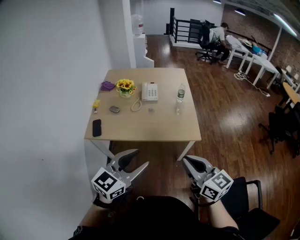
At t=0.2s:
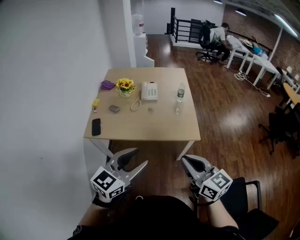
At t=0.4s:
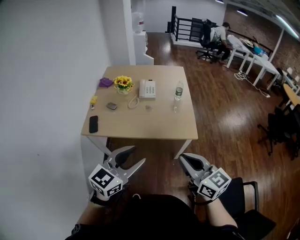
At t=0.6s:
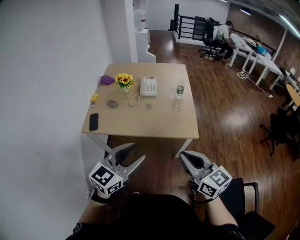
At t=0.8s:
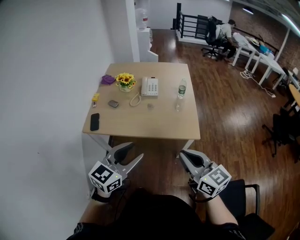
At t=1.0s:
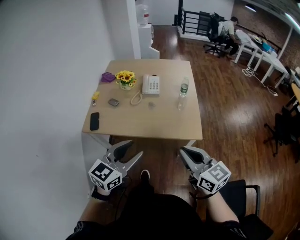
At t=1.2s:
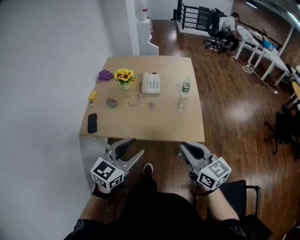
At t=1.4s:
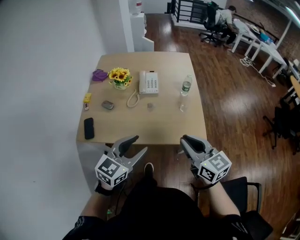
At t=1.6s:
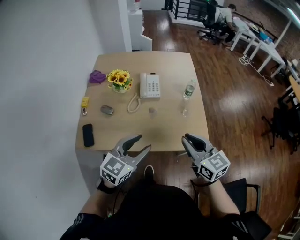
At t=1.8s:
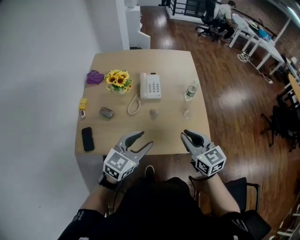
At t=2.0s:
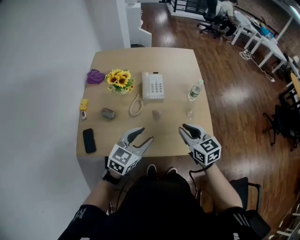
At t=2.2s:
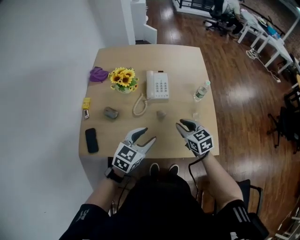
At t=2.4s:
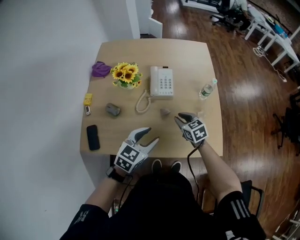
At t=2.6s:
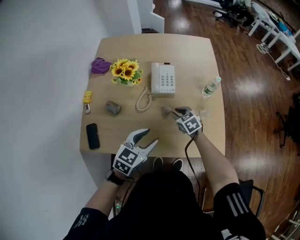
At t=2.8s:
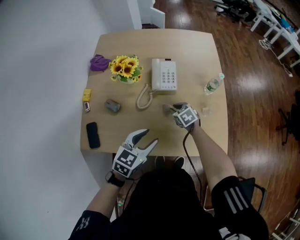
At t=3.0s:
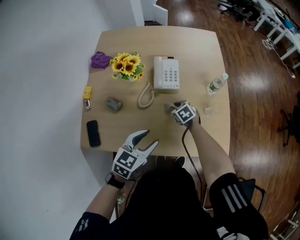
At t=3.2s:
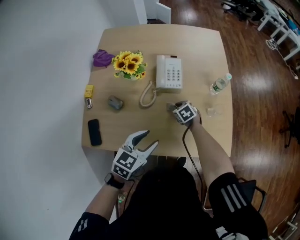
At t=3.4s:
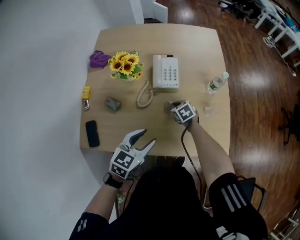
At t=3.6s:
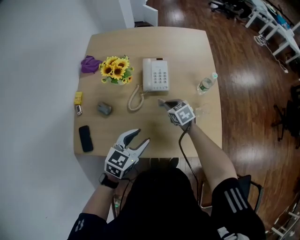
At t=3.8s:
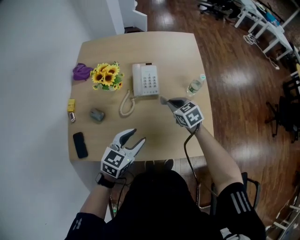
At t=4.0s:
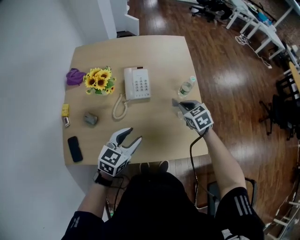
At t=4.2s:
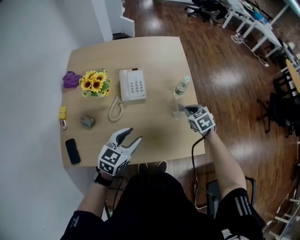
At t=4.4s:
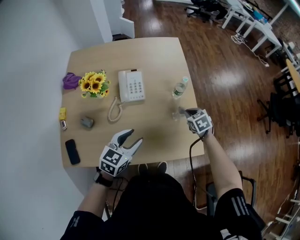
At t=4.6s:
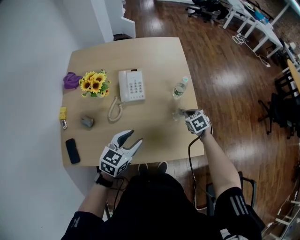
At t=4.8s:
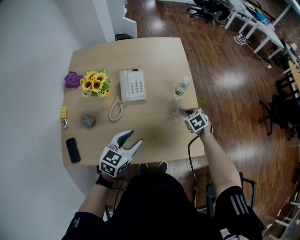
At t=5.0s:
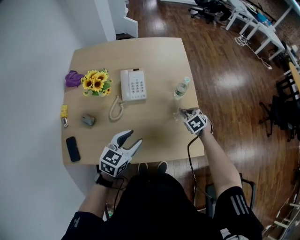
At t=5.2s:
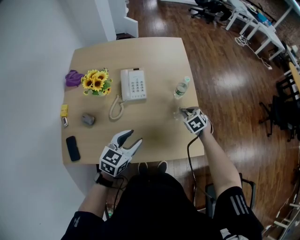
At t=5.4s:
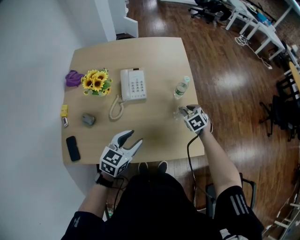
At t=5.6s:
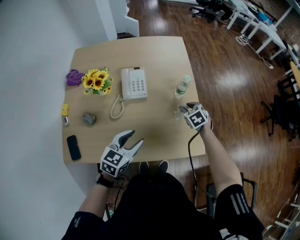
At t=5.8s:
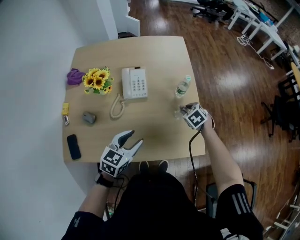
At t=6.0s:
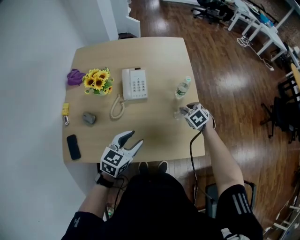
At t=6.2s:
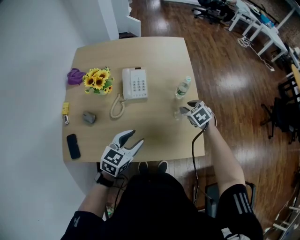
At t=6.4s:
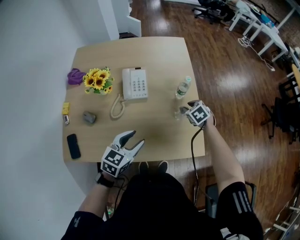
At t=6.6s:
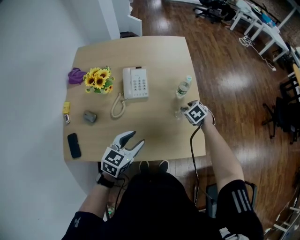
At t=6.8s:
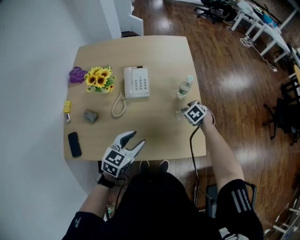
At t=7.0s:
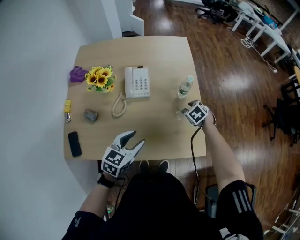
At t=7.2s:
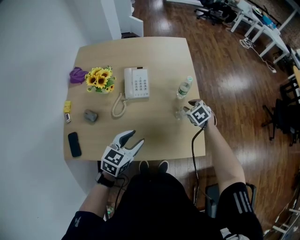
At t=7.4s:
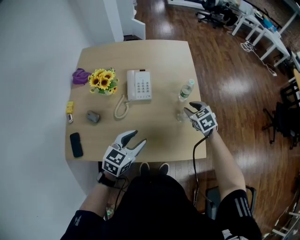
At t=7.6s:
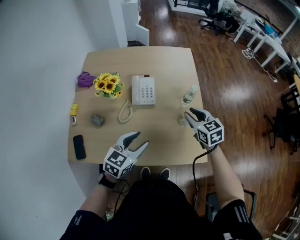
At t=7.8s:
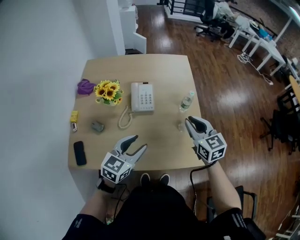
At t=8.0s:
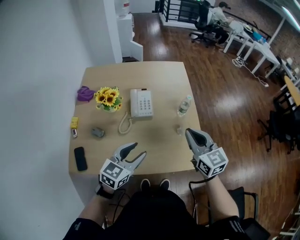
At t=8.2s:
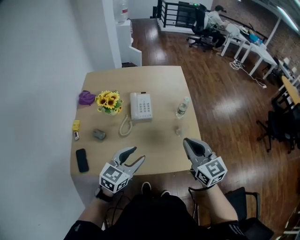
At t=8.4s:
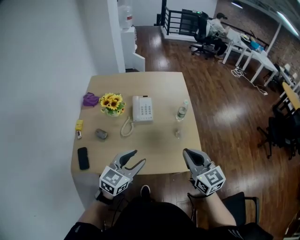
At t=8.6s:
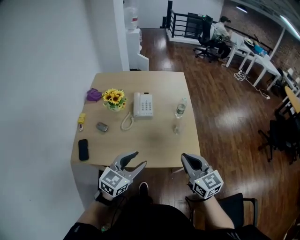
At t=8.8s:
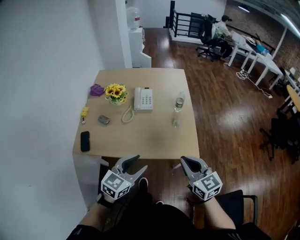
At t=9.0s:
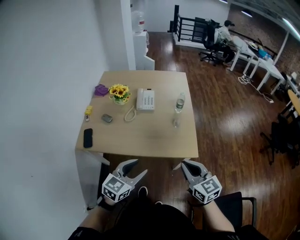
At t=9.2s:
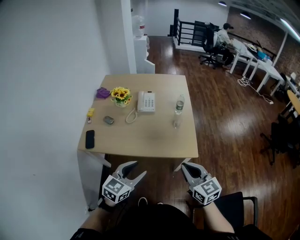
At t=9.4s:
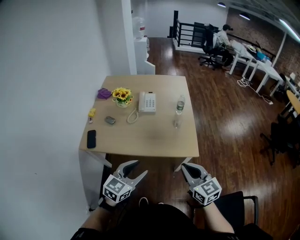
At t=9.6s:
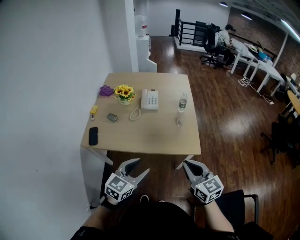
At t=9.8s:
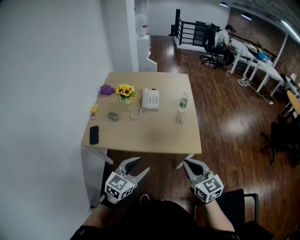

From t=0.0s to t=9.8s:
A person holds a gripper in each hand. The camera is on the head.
From t=0.0s to t=1.4s: The left gripper is displaced forward and downward by roughly 20 cm. The right gripper heads forward, covering roughly 20 cm.
From t=1.4s to t=2.8s: The left gripper heads forward and downward, covering roughly 25 cm. The right gripper shifts roughly 50 cm downward and forward, and tilts its fingers some 40 degrees downward.
From t=2.8s to t=4.2s: The left gripper shifts about 5 cm to the right. Meanwhile the right gripper goes roughly 25 cm to the right and upward, and closes its fingers.
From t=4.2s to t=5.6s: The right gripper opens up.
From t=5.6s to t=7.0s: The grippers make only small movements.
From t=7.0s to t=8.4s: The left gripper shifts roughly 15 cm upward and backward; the right gripper heads upward and backward, covering approximately 40 cm, tips its fingers upward by some 60 degrees, and closes its fingers.
From t=8.4s to t=9.8s: The two grippers go about 20 cm backward.

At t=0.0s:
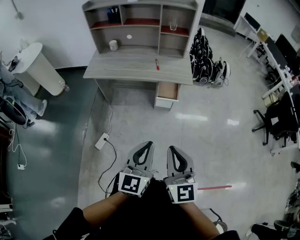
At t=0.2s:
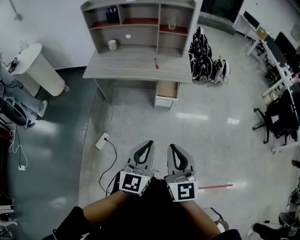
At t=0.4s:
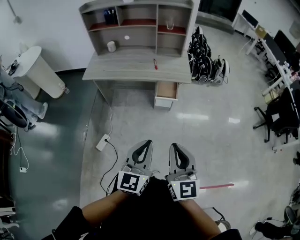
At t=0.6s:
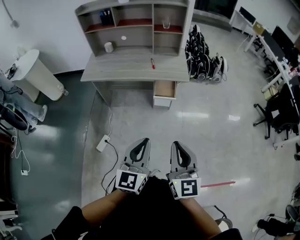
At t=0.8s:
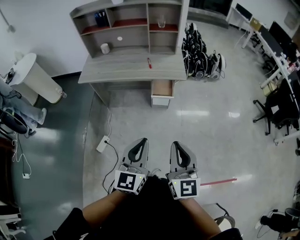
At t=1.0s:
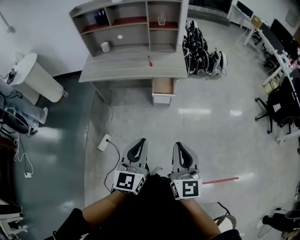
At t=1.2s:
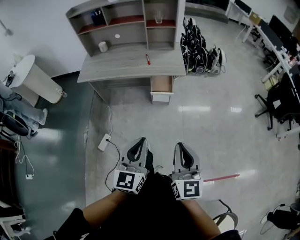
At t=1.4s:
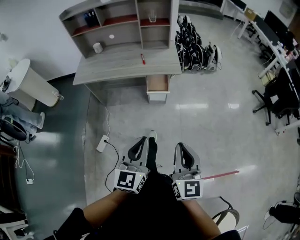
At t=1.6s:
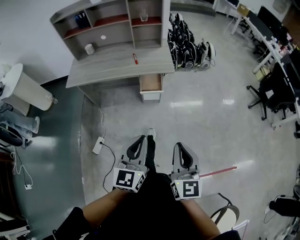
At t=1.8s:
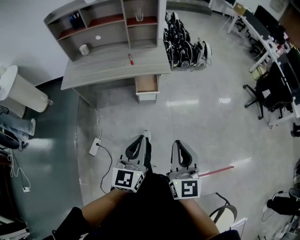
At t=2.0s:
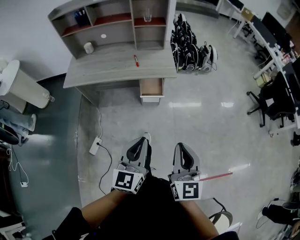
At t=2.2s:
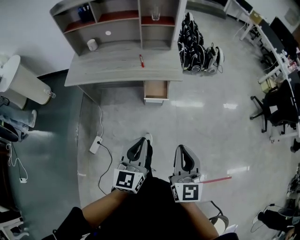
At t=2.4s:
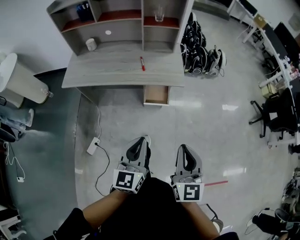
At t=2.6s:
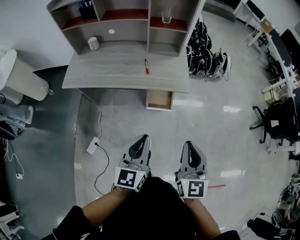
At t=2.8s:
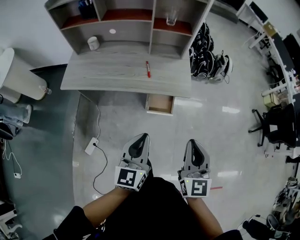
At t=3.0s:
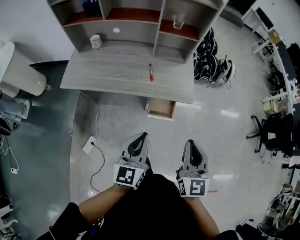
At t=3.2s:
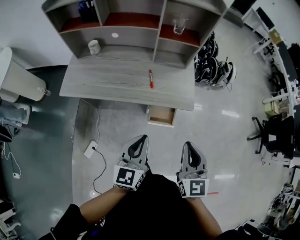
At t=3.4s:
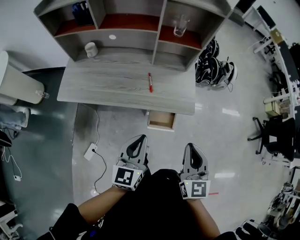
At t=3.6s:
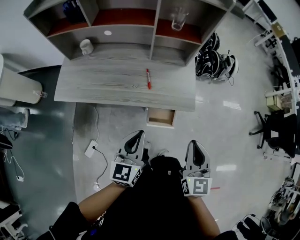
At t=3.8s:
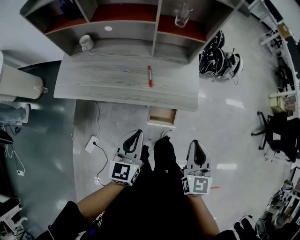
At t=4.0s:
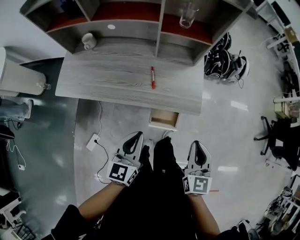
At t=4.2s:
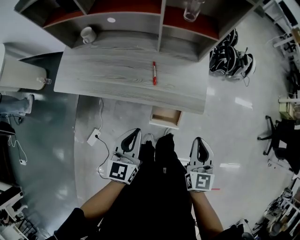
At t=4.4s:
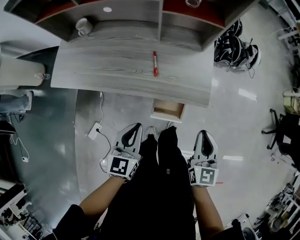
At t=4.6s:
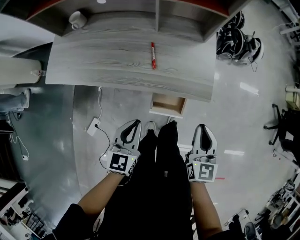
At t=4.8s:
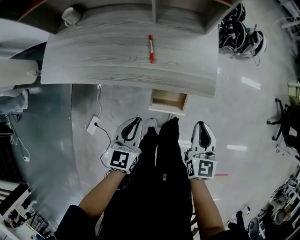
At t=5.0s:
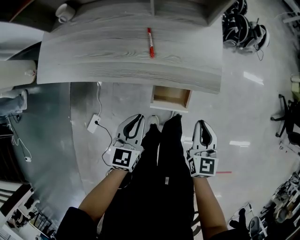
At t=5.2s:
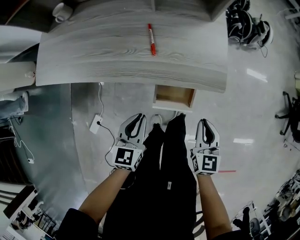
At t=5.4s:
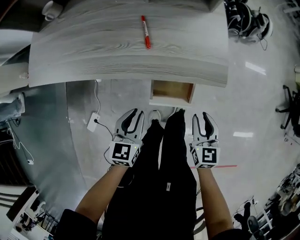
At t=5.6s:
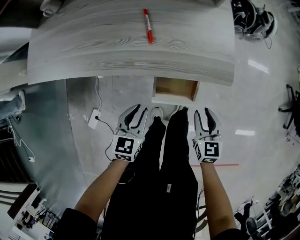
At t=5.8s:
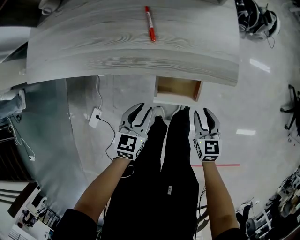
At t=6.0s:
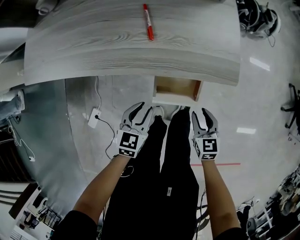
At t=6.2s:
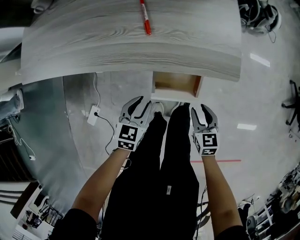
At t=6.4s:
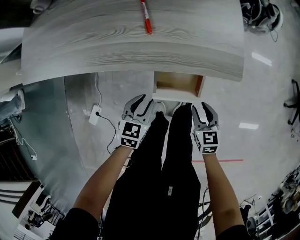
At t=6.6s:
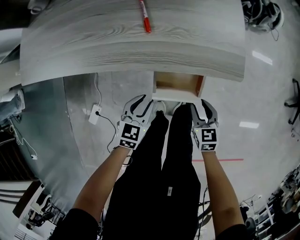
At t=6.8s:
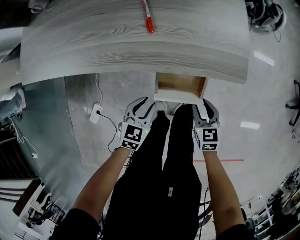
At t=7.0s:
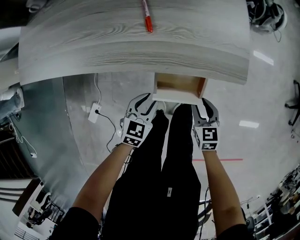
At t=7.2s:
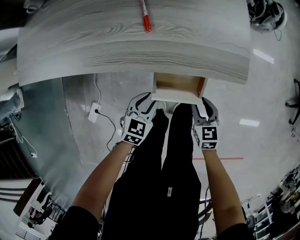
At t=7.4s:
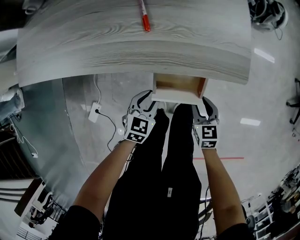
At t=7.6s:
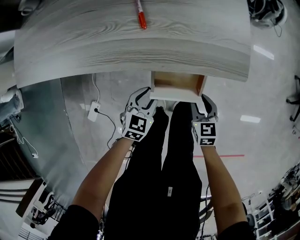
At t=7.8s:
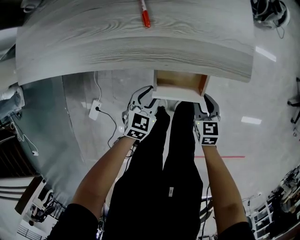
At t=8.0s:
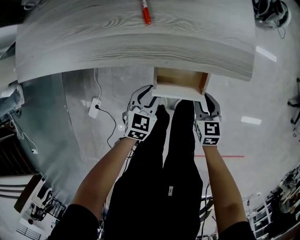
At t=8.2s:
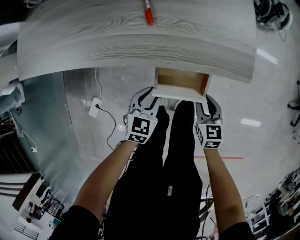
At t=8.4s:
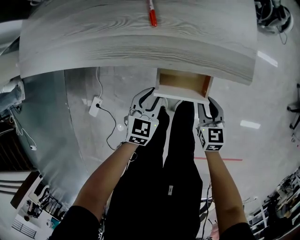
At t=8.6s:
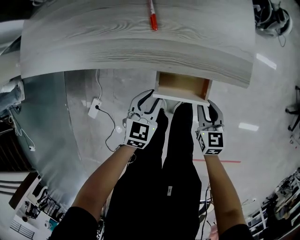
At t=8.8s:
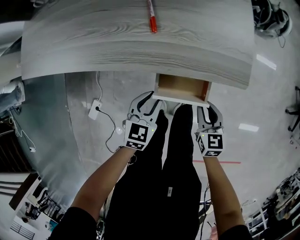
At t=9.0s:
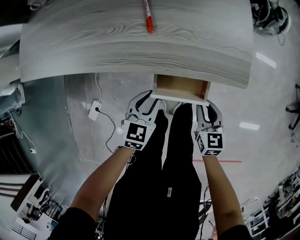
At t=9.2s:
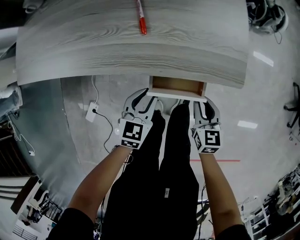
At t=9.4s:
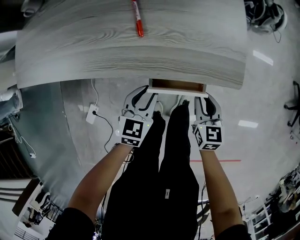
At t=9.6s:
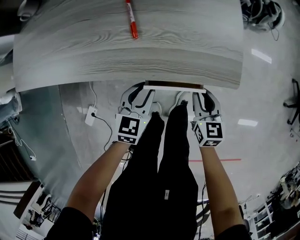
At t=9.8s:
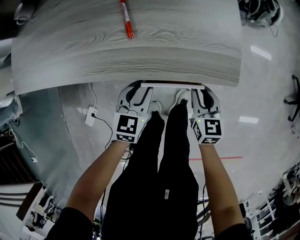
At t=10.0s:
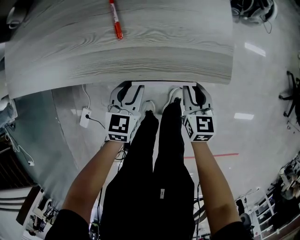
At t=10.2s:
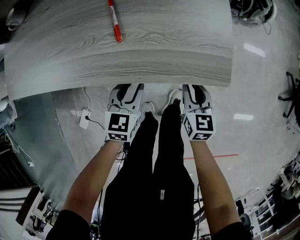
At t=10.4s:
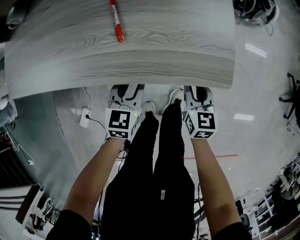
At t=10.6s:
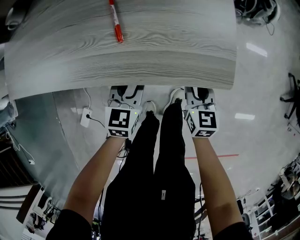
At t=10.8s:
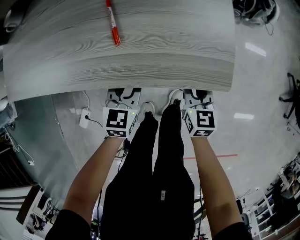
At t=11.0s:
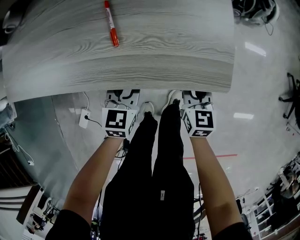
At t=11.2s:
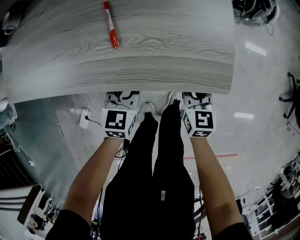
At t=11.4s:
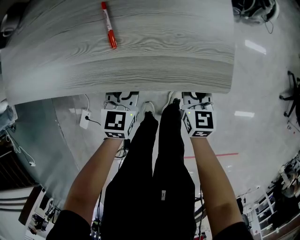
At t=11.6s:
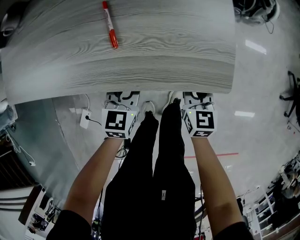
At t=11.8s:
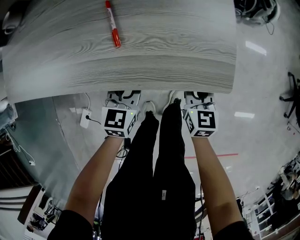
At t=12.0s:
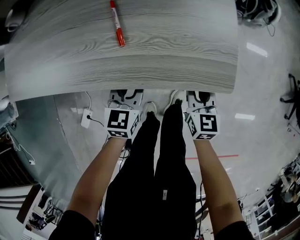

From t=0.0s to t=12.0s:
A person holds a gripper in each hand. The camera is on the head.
From t=0.0s to t=1.6s: The right gripper goes approximately 10 cm to the right. Meanwhile the left gripper ends up roughly 5 cm from where it was.
From t=1.6s to t=3.0s: The two grippers go roughly 30 cm forward.
From t=3.0s to t=4.4s: The two grippers go roughly 20 cm forward and downward.
From t=4.4s to t=6.0s: The two grippers go about 30 cm downward. The right gripper turns by approximately 20 degrees, and opens its fingers, while the left gripper turns by roughly 20 degrees, and opens its fingers.
From t=6.0s to t=7.6s: Both grippers move downward, some 10 cm.
From t=7.6s to t=9.0s: The two grippers go roughly 5 cm upward.
From t=9.0s to t=10.4s: Both grippers travel together forward, roughly 10 cm.
From t=10.4s to t=12.0s: The grippers make only small movements.

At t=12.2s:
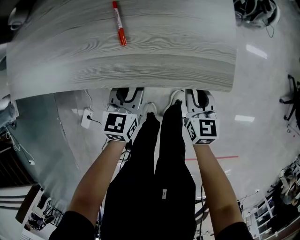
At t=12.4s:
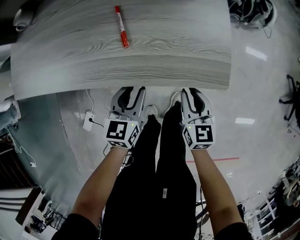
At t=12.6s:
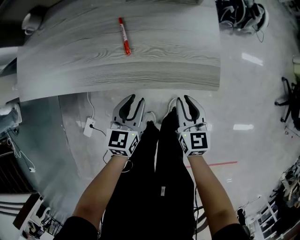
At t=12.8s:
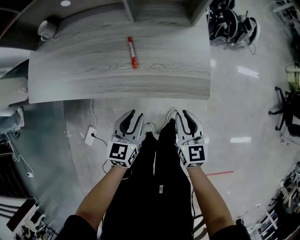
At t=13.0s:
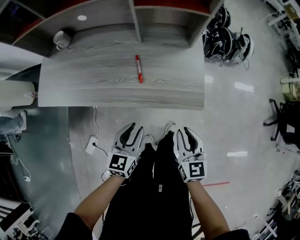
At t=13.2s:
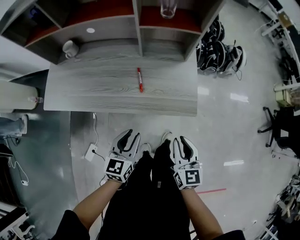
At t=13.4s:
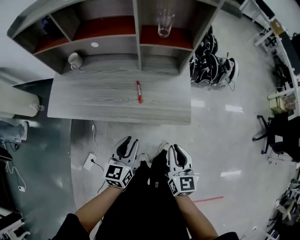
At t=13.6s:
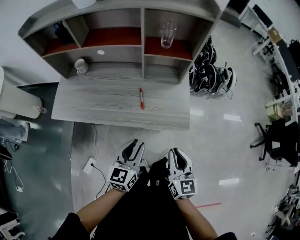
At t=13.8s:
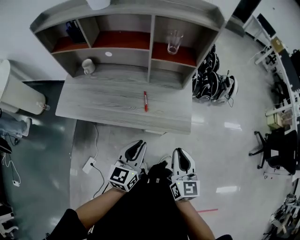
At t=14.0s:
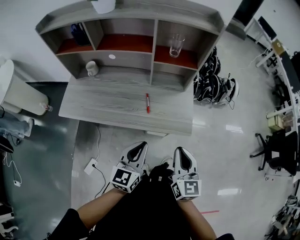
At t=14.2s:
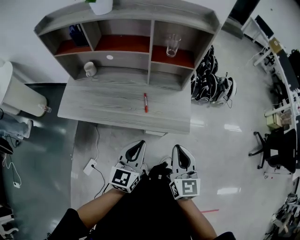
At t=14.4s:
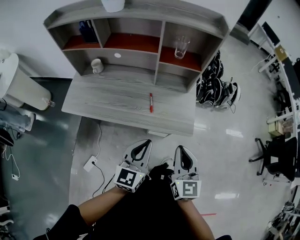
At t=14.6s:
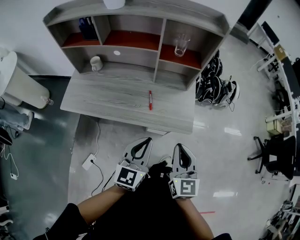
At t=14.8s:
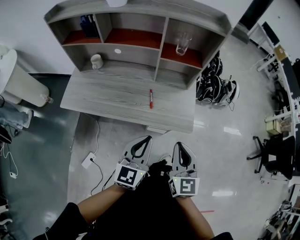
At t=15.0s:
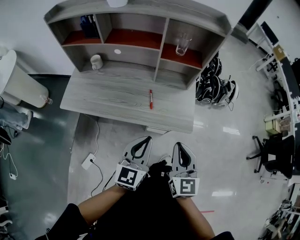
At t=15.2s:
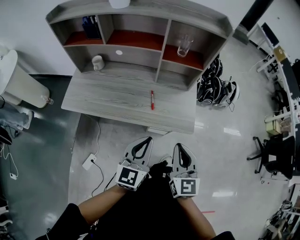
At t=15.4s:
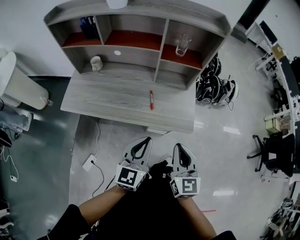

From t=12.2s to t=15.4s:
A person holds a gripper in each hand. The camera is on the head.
From t=12.2s to t=13.8s: The two grippers go some 40 cm upward.
From t=13.8s to t=15.4s: The left gripper shifts approximately 5 cm upward, while the right gripper ends up roughly 5 cm from where it was.
